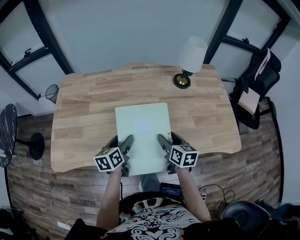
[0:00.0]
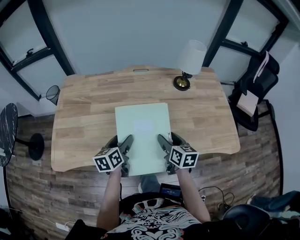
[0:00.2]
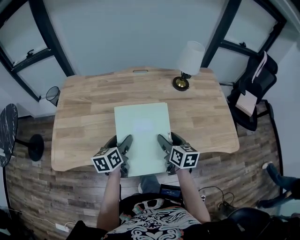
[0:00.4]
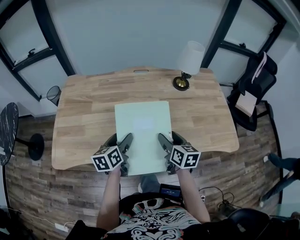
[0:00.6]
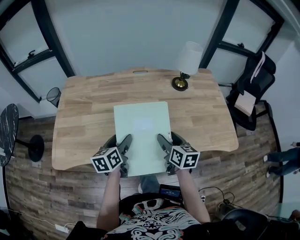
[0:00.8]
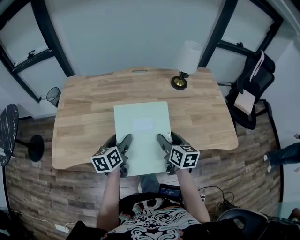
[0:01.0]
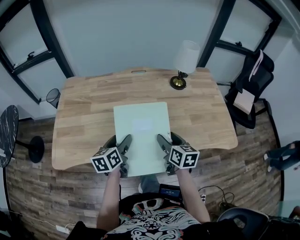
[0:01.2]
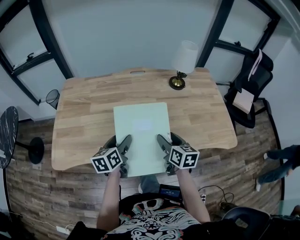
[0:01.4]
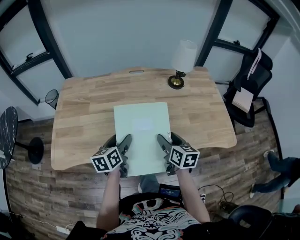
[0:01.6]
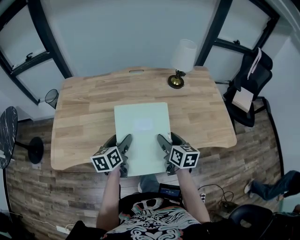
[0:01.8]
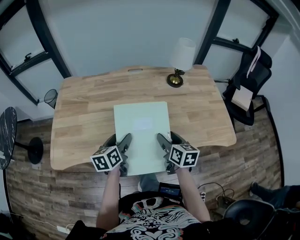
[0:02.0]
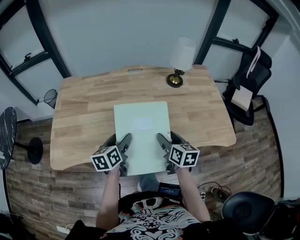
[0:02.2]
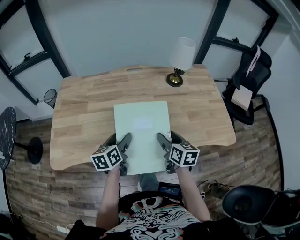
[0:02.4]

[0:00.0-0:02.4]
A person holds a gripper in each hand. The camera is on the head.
0:00.0 to 0:01.2: The right gripper moves some 5 cm; the left gripper changes place by approximately 5 cm.
0:01.2 to 0:02.4: There are only small adjustments of the grippers.

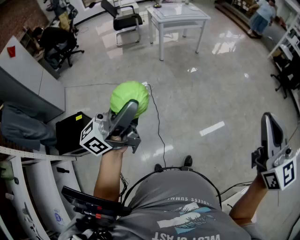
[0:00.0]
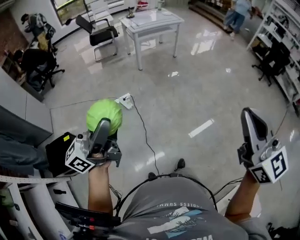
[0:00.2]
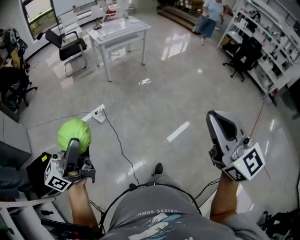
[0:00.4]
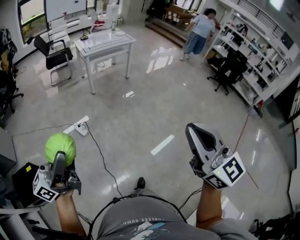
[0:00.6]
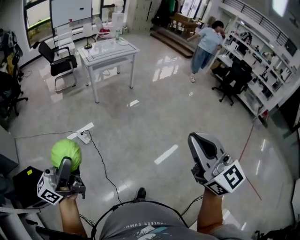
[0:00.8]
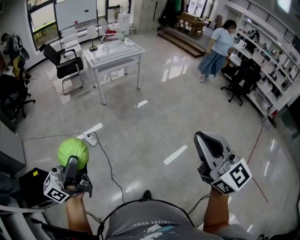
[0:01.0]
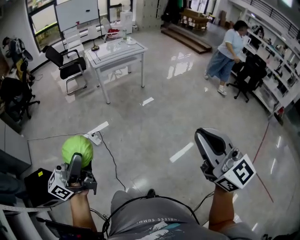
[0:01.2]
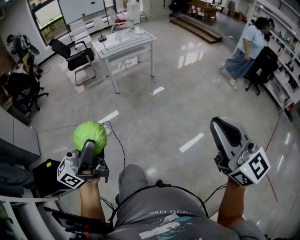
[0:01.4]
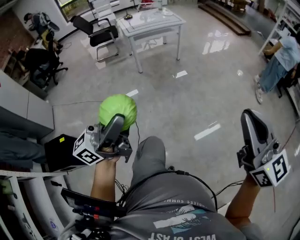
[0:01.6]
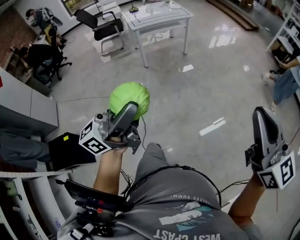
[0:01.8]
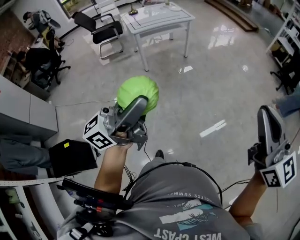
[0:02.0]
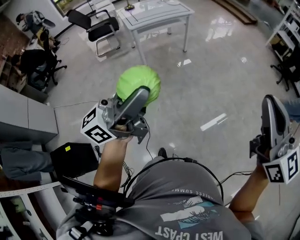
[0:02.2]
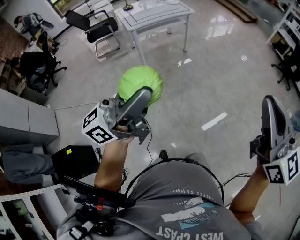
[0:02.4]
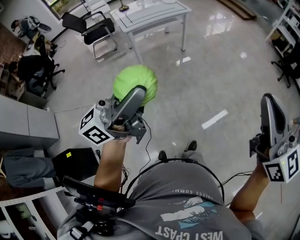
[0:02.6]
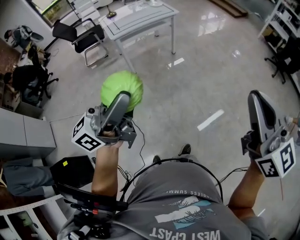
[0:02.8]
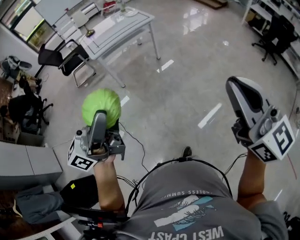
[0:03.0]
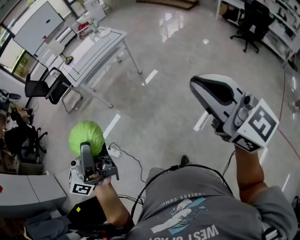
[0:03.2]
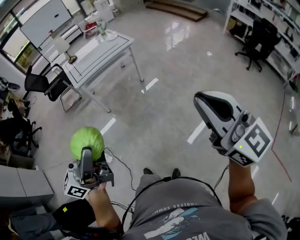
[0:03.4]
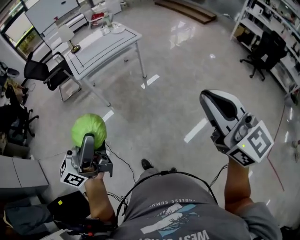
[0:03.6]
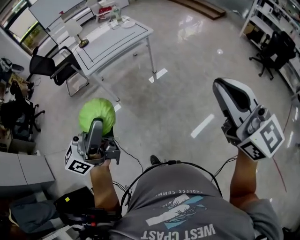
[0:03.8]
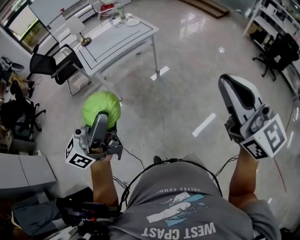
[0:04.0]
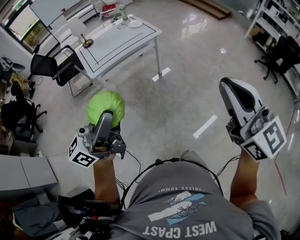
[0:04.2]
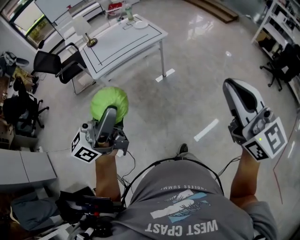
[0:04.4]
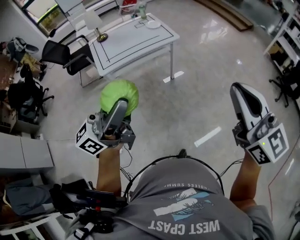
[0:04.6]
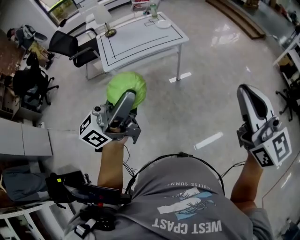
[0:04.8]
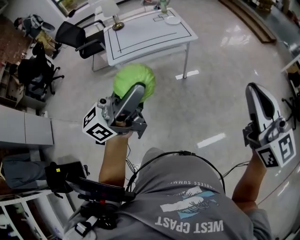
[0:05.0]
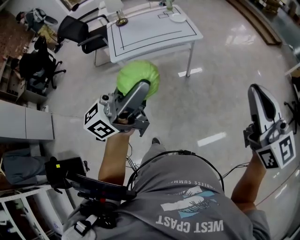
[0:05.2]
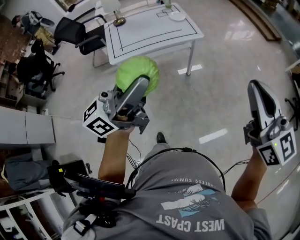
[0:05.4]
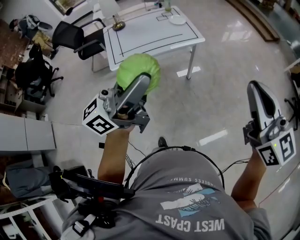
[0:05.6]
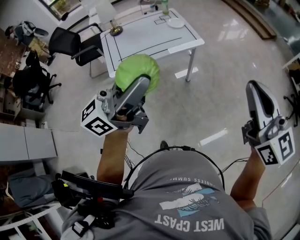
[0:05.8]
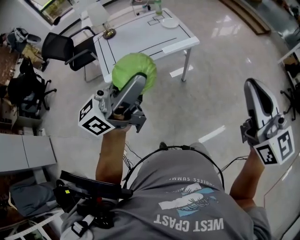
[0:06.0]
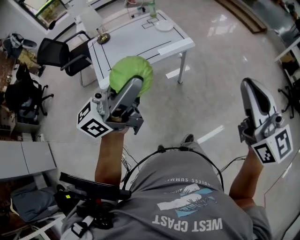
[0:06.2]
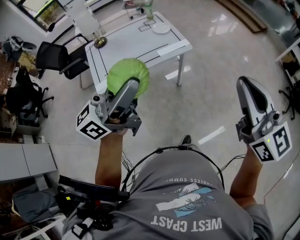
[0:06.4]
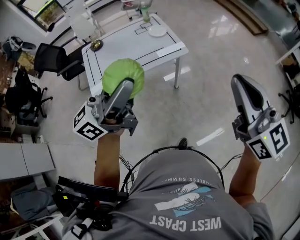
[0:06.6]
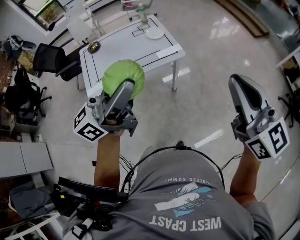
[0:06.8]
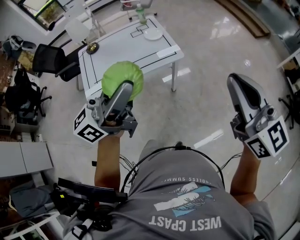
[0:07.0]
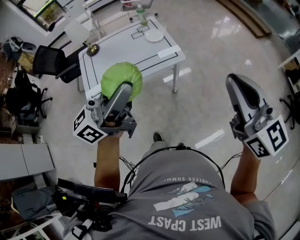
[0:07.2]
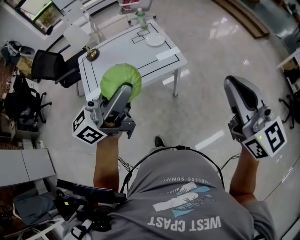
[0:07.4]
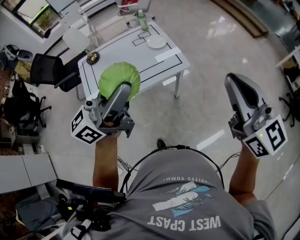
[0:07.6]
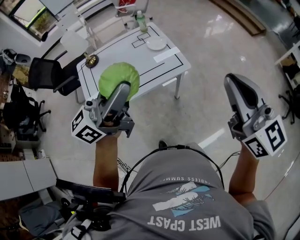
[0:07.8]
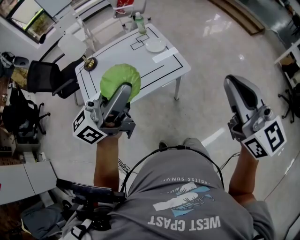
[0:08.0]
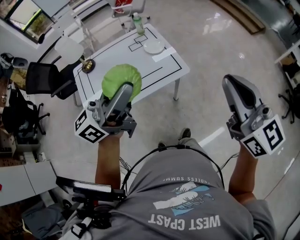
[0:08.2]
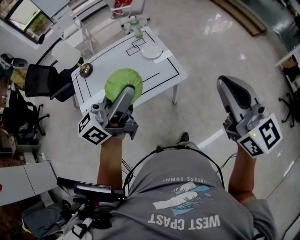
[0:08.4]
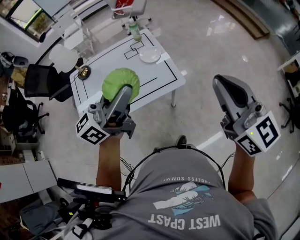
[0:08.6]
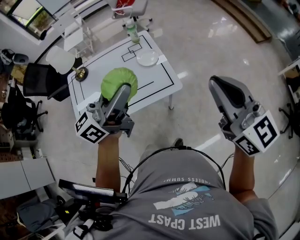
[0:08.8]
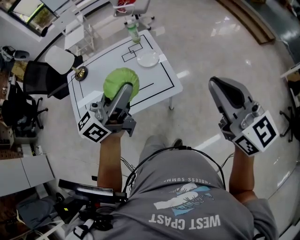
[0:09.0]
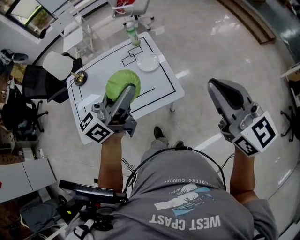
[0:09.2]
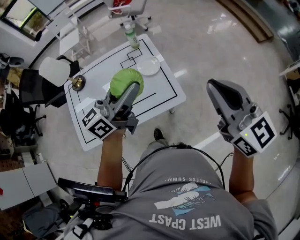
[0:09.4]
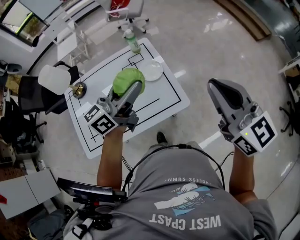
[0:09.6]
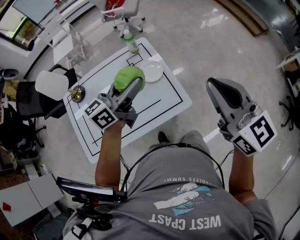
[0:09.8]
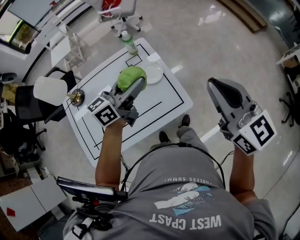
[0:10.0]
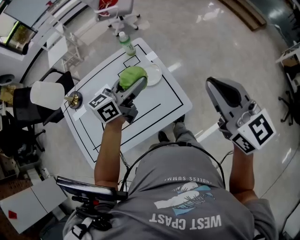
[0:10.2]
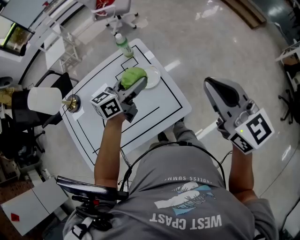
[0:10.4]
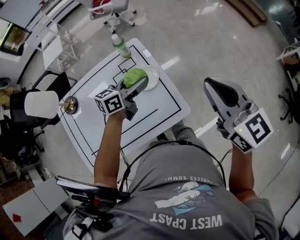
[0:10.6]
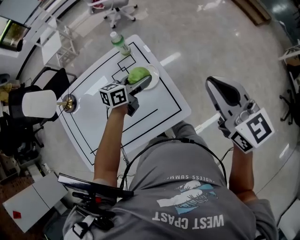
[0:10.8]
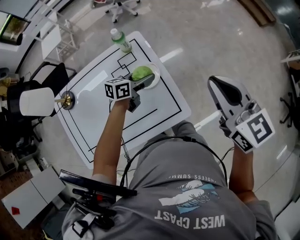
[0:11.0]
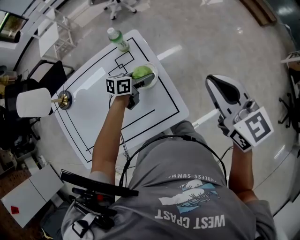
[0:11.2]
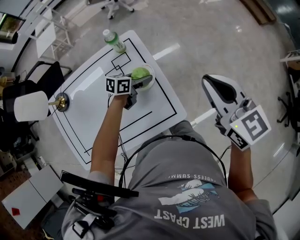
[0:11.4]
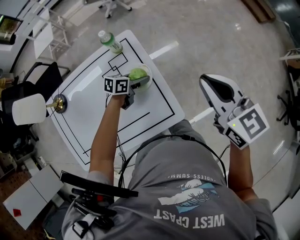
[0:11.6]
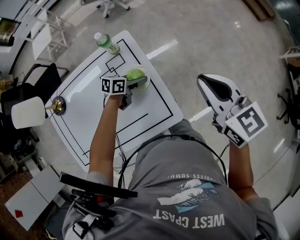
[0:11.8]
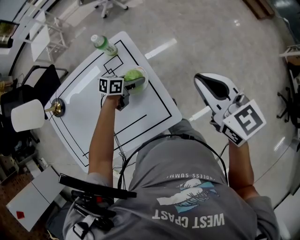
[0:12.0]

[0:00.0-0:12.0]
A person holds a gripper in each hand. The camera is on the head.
0:00.0 to 0:01.6: The left gripper moves to the right and forward, about 30 cm. The right gripper shifts roughly 30 cm forward and to the right.
0:01.6 to 0:03.0: Both grippers move forward, about 35 cm.
0:03.0 to 0:04.4: Both grippers move forward, about 30 cm.
0:04.4 to 0:06.0: Both grippers move forward, about 25 cm.
0:06.0 to 0:07.6: Both grippers travel together forward, some 25 cm.
0:07.6 to 0:09.0: The two grippers go some 20 cm forward.
0:09.0 to 0:10.4: The right gripper heads forward, covering approximately 20 cm. The left gripper heads forward and downward, covering some 30 cm, and swivels approximately 30 degrees.
0:10.4 to 0:12.0: The right gripper shifts about 20 cm forward and downward. Meanwhile the left gripper is displaced downward by roughly 25 cm, and turns by approximately 40 degrees.

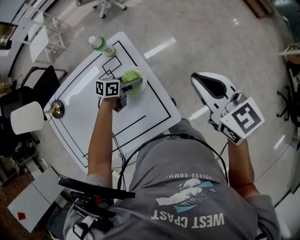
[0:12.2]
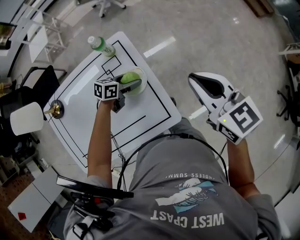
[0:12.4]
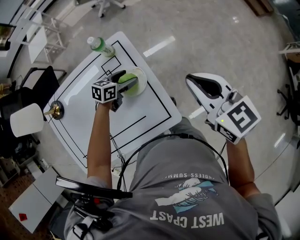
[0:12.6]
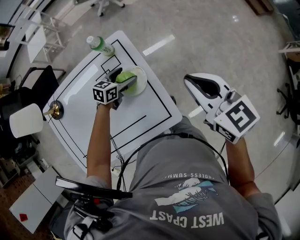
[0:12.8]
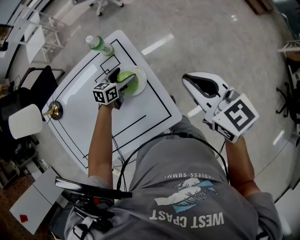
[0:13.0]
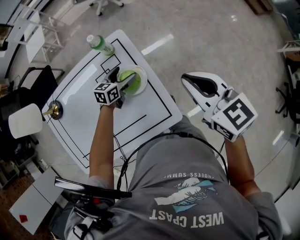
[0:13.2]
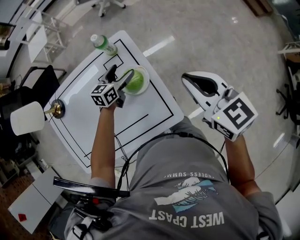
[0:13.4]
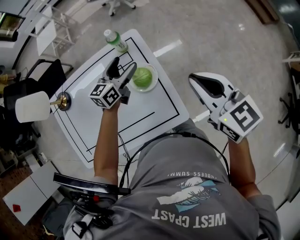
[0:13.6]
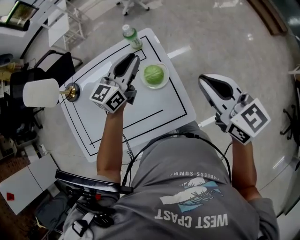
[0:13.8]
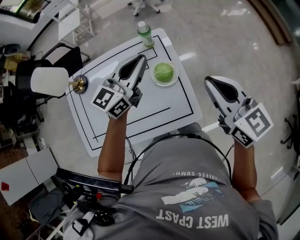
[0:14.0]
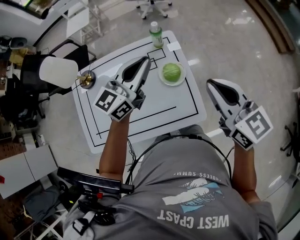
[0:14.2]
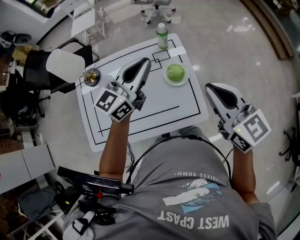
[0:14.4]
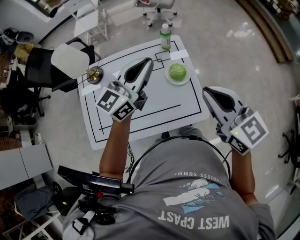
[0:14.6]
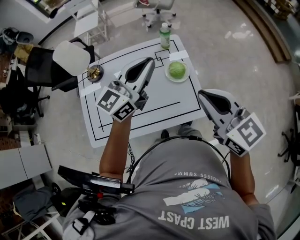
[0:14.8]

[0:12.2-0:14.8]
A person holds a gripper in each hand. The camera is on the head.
0:12.2 to 0:13.4: The left gripper is displaced to the left by some 5 cm, swivels about 30 degrees, and opens its fingers.
0:13.4 to 0:14.8: The left gripper travels upward and backward by some 40 cm, angles its fingers upward, by approximately 30 degrees, and closes up. Meanwhile the right gripper travels backward, to the left and upward by roughly 25 cm.

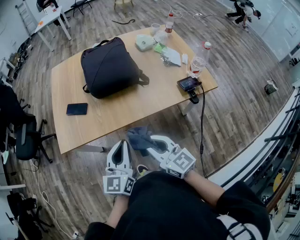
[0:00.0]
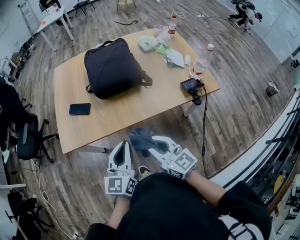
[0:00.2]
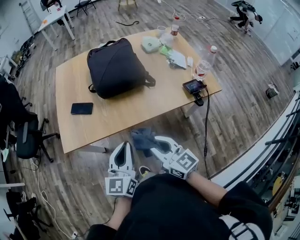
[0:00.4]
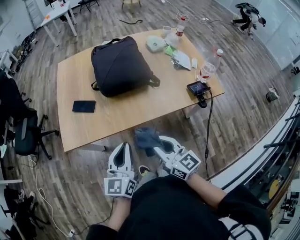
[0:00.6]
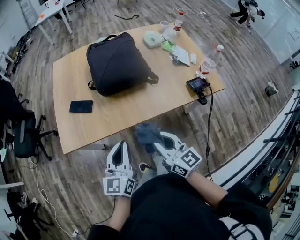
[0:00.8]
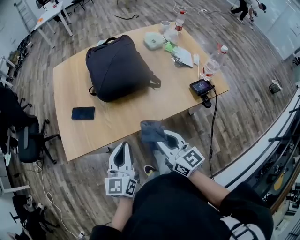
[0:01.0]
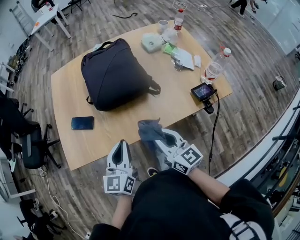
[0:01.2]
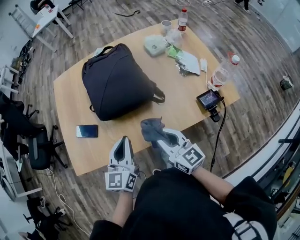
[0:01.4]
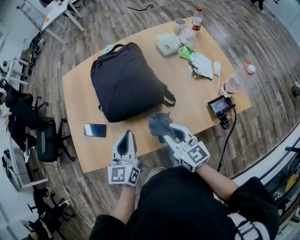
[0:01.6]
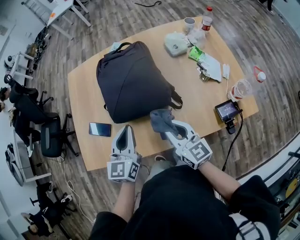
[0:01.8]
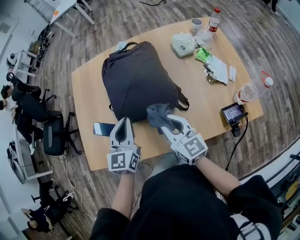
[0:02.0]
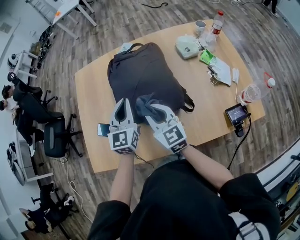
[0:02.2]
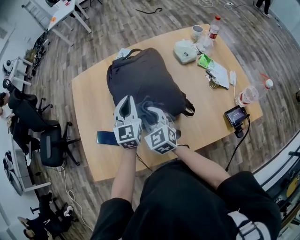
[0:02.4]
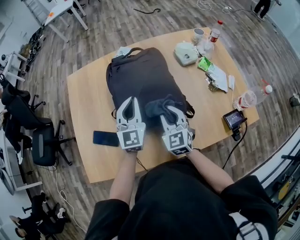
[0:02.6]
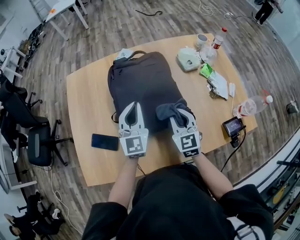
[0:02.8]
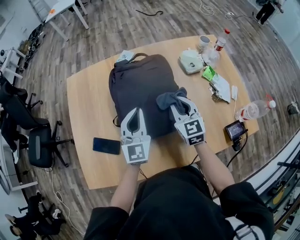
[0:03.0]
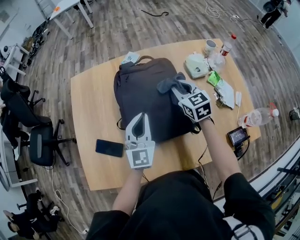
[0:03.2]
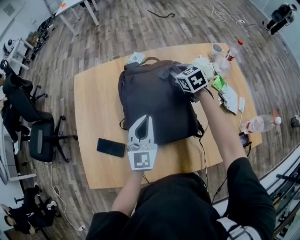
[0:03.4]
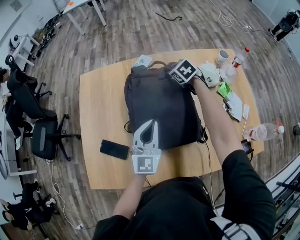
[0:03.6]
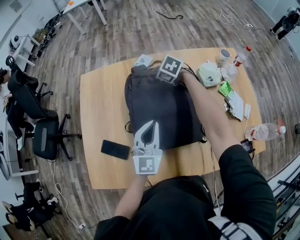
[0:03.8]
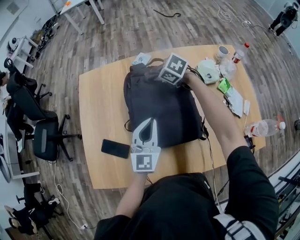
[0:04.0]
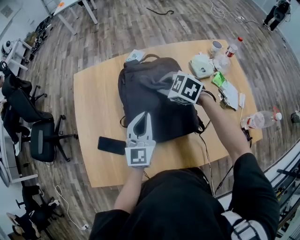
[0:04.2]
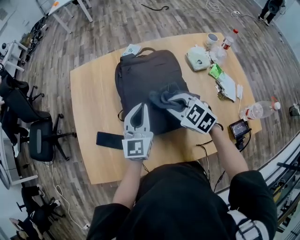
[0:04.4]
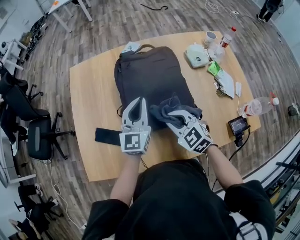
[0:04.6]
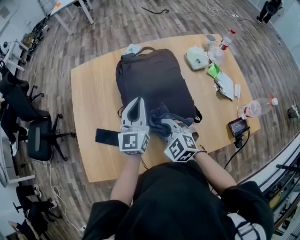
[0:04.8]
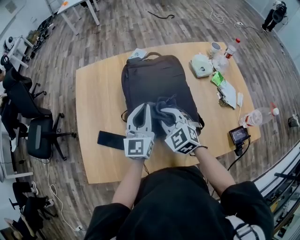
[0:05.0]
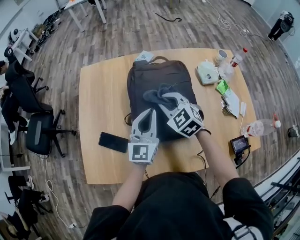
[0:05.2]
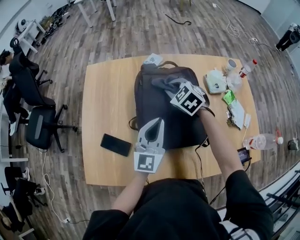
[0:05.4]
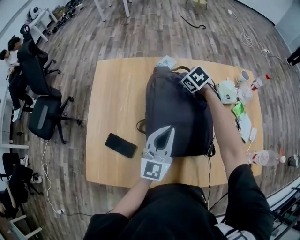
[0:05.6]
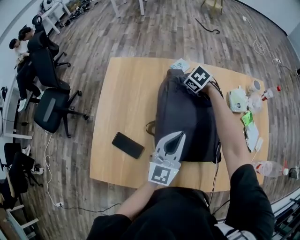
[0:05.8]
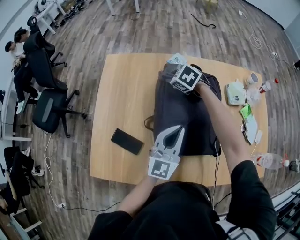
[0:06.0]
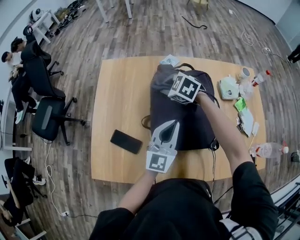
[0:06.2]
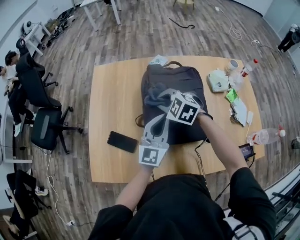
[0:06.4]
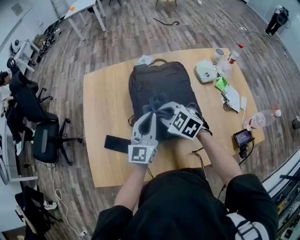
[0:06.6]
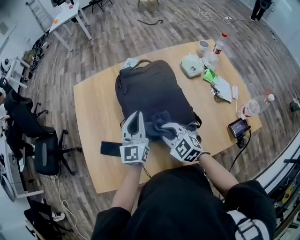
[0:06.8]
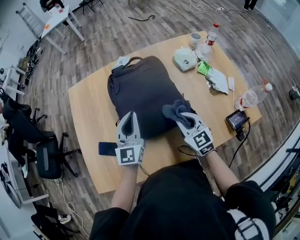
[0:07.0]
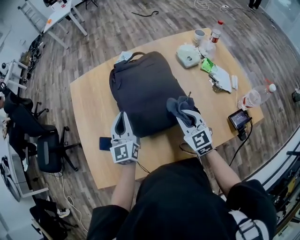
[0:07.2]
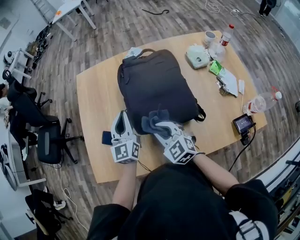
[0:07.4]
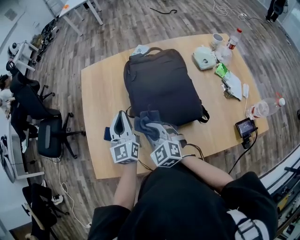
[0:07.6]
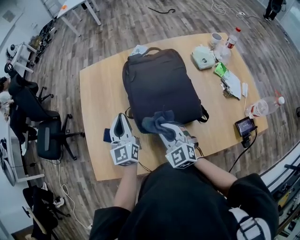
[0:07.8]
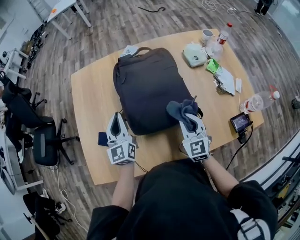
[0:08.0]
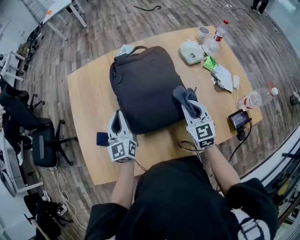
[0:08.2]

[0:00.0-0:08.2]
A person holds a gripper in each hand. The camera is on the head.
0:00.0 to 0:01.6: Both grippers move forward, approximately 25 cm.
0:01.6 to 0:03.2: The right gripper goes about 35 cm forward, and turns by about 30 degrees; the left gripper travels forward by approximately 20 cm.
0:03.2 to 0:05.0: The right gripper swings forward and backward, about 30 cm each way, with 2 reversals, and swivels about 30 degrees.
0:05.0 to 0:06.6: The right gripper goes forward and returns, about 30 cm each way.
0:06.6 to 0:08.2: The left gripper is displaced to the left and downward by some 10 cm, while the right gripper swings left and right, about 25 cm each way, with 2 reversals, and changes its angle by roughly 50 degrees.
